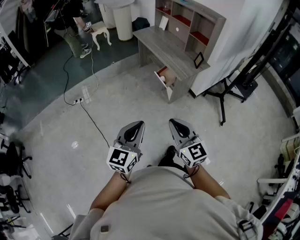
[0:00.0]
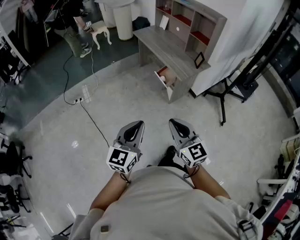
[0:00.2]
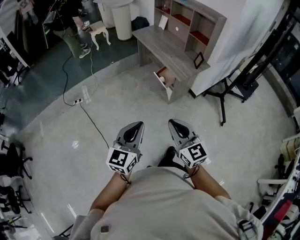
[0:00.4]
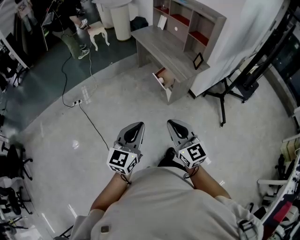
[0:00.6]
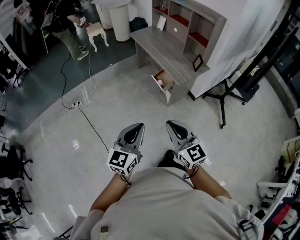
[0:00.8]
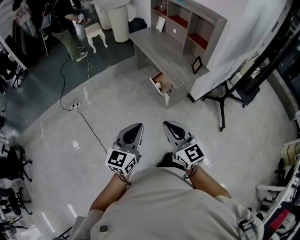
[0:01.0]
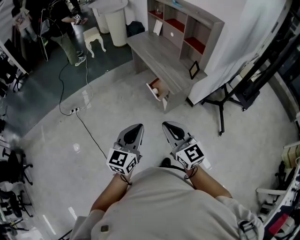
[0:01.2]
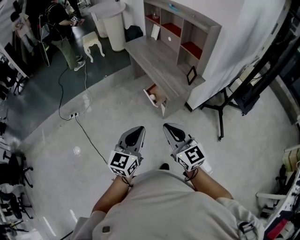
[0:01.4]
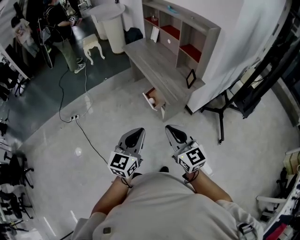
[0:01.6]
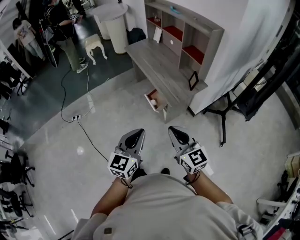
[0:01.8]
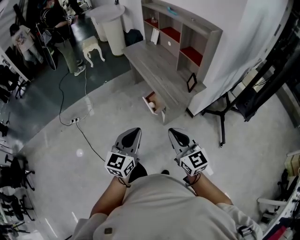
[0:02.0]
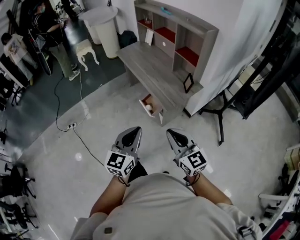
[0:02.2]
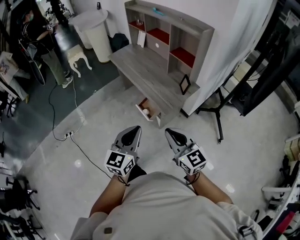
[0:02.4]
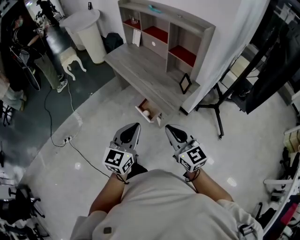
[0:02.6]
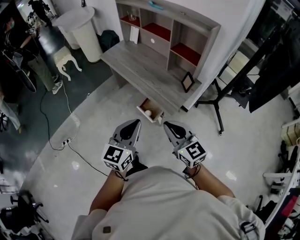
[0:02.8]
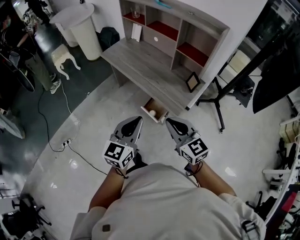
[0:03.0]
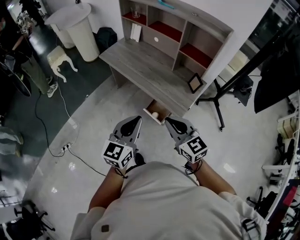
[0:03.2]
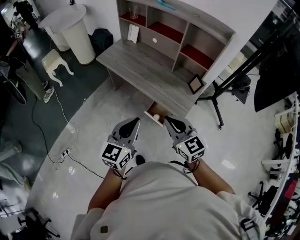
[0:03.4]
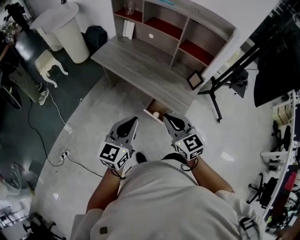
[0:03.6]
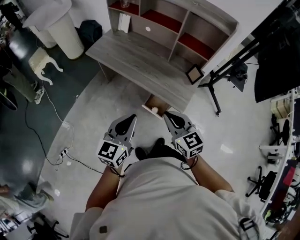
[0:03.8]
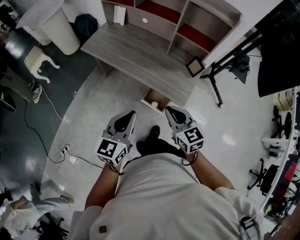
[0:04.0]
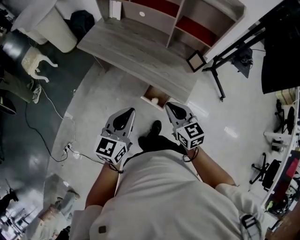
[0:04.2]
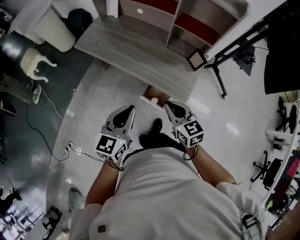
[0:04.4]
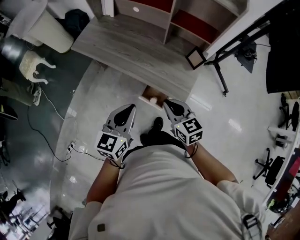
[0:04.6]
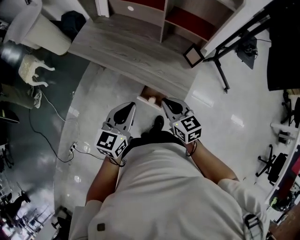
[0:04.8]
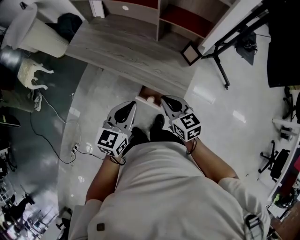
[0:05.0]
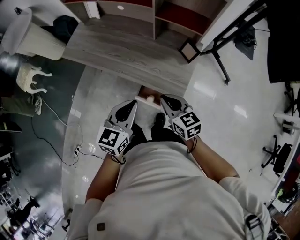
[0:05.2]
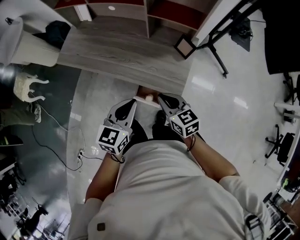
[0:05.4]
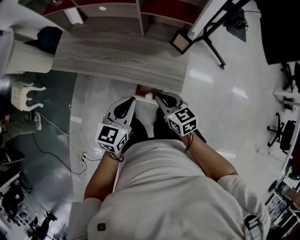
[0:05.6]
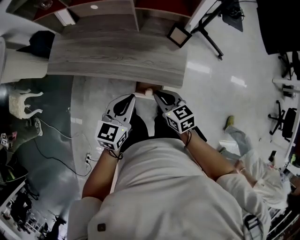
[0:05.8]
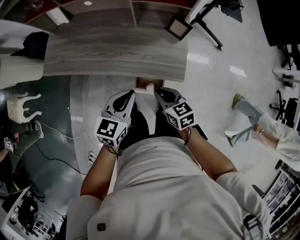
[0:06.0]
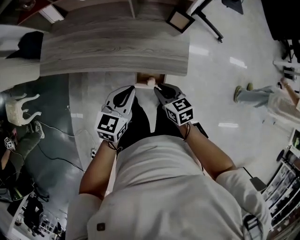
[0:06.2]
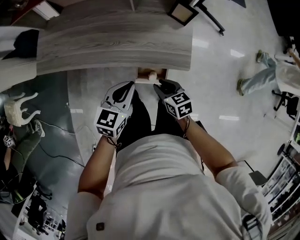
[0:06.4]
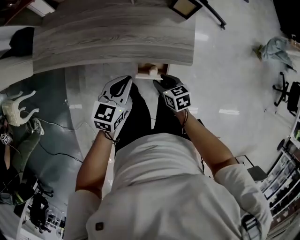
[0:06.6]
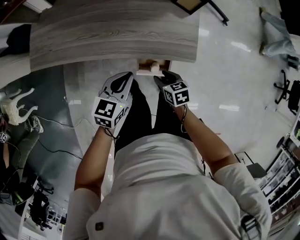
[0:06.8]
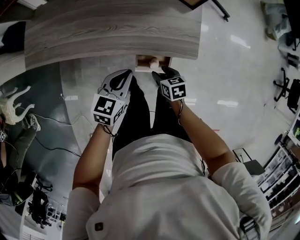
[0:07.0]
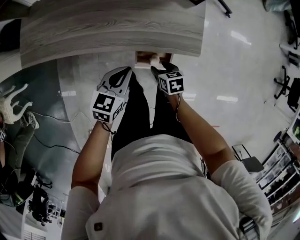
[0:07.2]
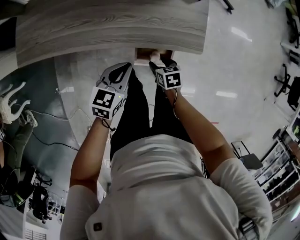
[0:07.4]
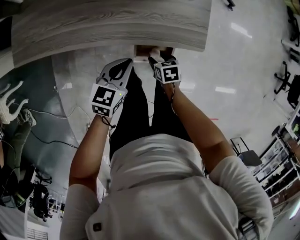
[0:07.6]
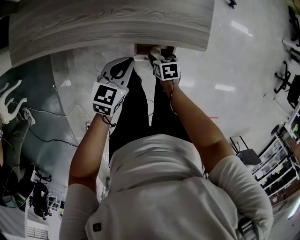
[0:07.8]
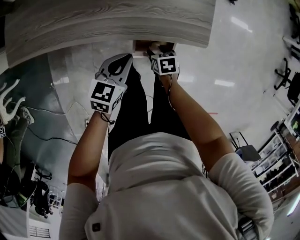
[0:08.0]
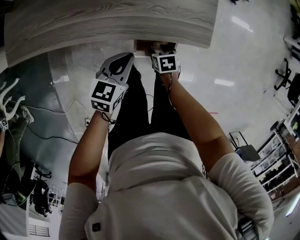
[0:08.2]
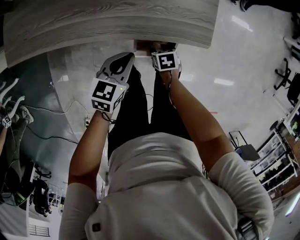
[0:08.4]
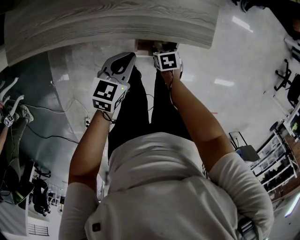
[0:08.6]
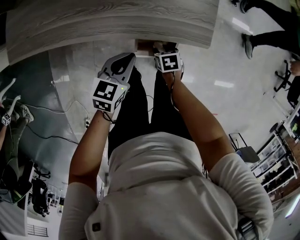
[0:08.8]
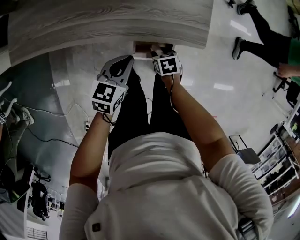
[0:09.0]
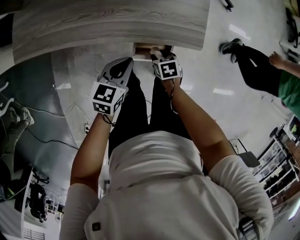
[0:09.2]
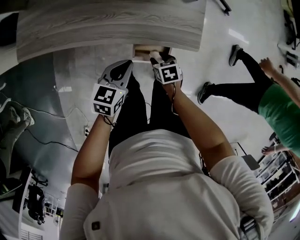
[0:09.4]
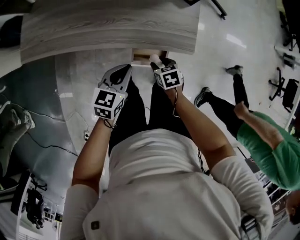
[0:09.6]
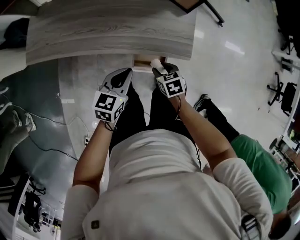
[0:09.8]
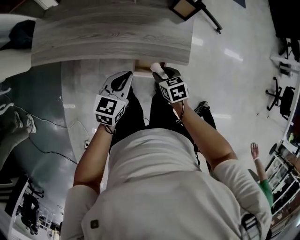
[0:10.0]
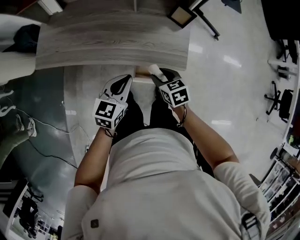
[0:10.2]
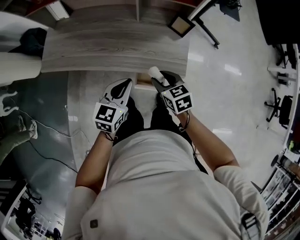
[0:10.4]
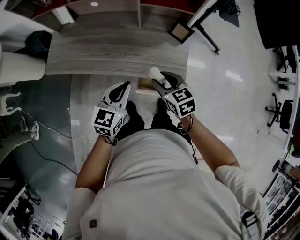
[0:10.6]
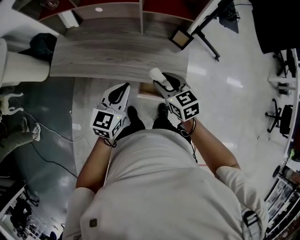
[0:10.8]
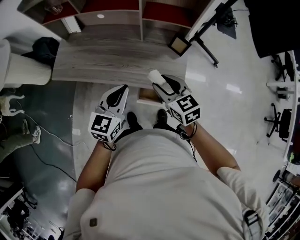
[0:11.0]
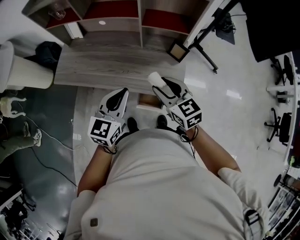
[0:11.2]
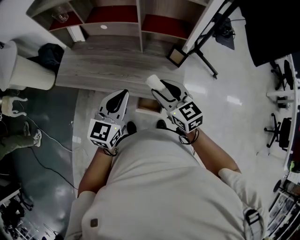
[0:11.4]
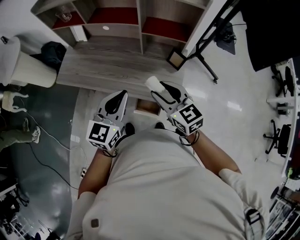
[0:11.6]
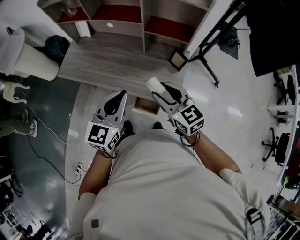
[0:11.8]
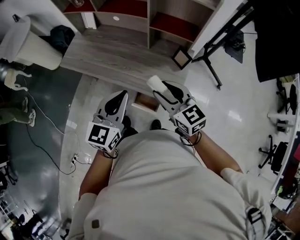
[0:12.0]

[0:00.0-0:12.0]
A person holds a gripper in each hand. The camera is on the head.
0:00.0 to 0:01.6: Both grippers move forward and to the right, approximately 25 cm.
0:01.6 to 0:03.0: The two grippers go roughly 30 cm forward and to the left.
0:03.0 to 0:04.4: The right gripper travels forward and downward by approximately 20 cm, and turns by about 30 degrees; the left gripper goes roughly 20 cm forward, downward and to the left.
0:04.4 to 0:06.0: The left gripper moves forward, downward and to the right, roughly 15 cm, and changes its angle by approximately 30 degrees. Meanwhile the right gripper is displaced downward and forward by roughly 15 cm, and rotates roughly 20 degrees.
0:06.0 to 0:07.6: The grippers both shift downward by roughly 25 cm. The right gripper rotates approximately 30 degrees, and opens its fingers.
0:07.6 to 0:09.0: The grippers move only a little.
0:09.0 to 0:10.4: The left gripper heads upward, covering some 20 cm. The right gripper moves upward, about 30 cm, and changes its angle by roughly 30 degrees.
0:10.4 to 0:12.0: Both grippers move upward, some 20 cm. The left gripper rotates about 30 degrees. Meanwhile the right gripper rotates about 30 degrees.

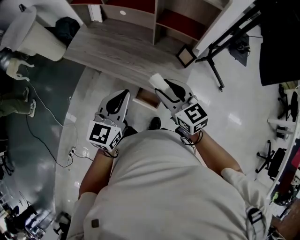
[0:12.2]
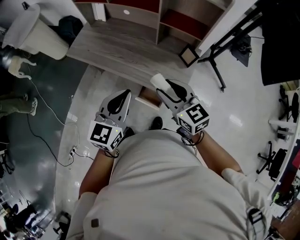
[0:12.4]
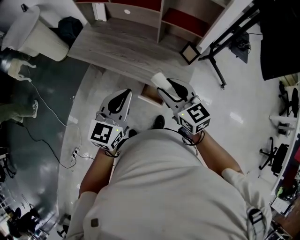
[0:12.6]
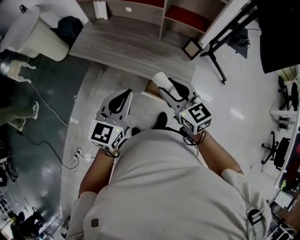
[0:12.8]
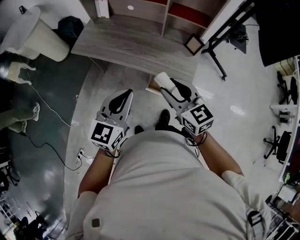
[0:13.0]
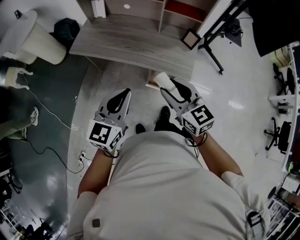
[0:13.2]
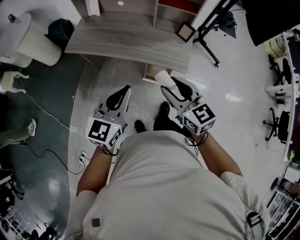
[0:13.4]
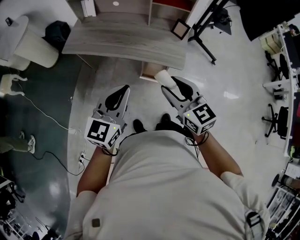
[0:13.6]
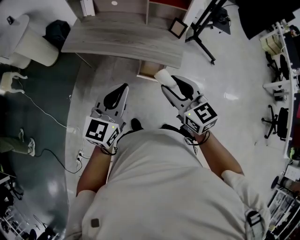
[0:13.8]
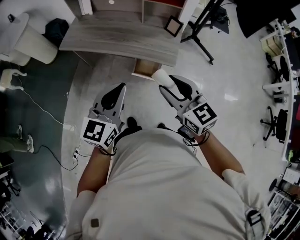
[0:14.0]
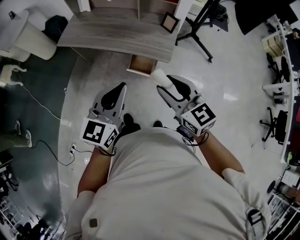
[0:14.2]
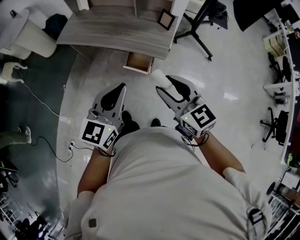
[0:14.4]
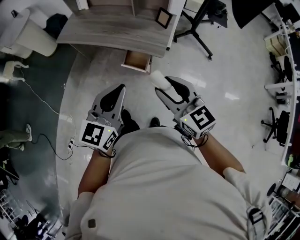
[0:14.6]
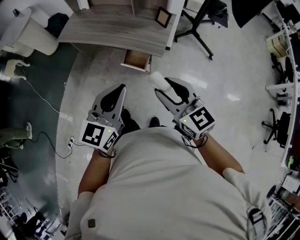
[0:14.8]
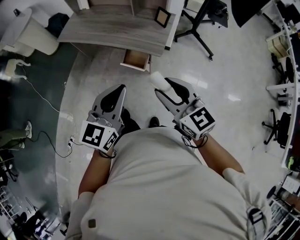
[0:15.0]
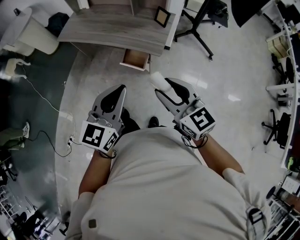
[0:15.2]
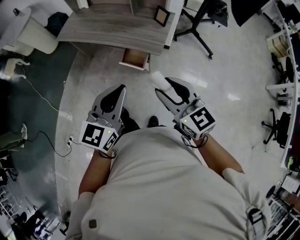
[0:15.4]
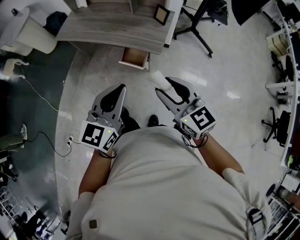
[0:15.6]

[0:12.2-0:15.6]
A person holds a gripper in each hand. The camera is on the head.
0:12.2 to 0:13.8: The right gripper shifts some 25 cm backward. Meanwhile the left gripper is displaced backward and to the left by about 20 cm.
0:13.8 to 0:15.6: Both grippers travel together to the right and backward, some 20 cm.

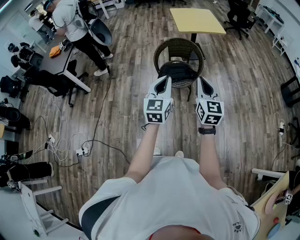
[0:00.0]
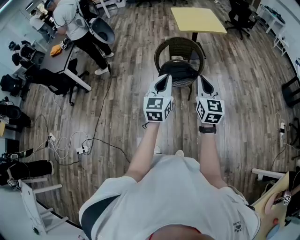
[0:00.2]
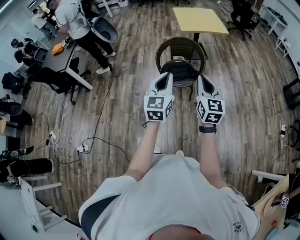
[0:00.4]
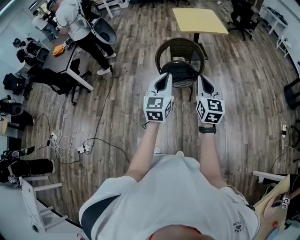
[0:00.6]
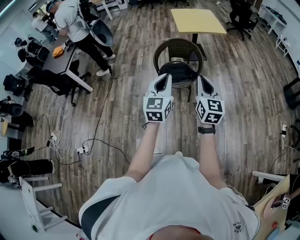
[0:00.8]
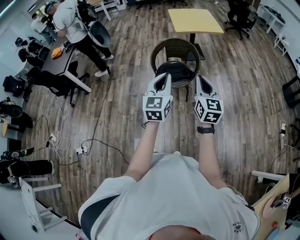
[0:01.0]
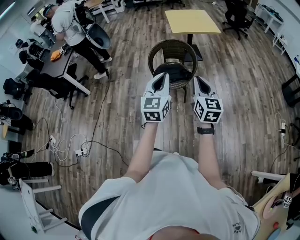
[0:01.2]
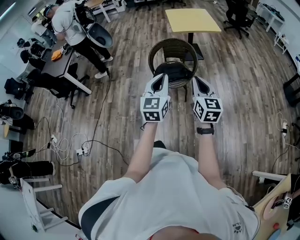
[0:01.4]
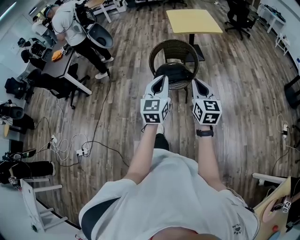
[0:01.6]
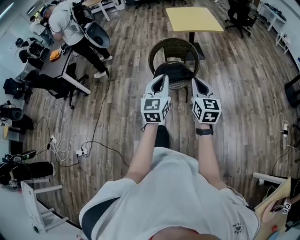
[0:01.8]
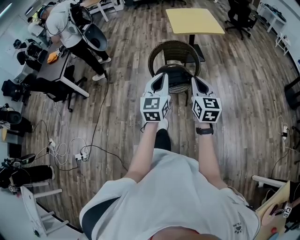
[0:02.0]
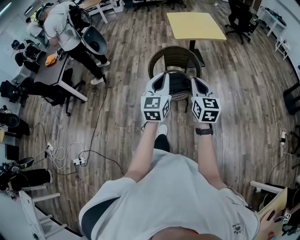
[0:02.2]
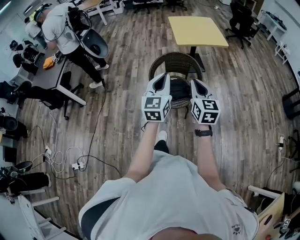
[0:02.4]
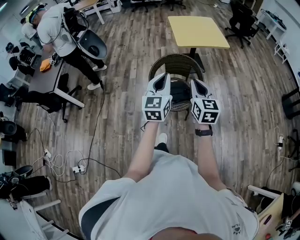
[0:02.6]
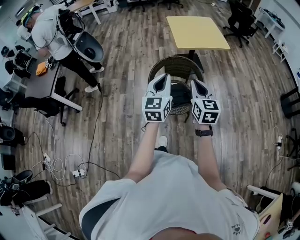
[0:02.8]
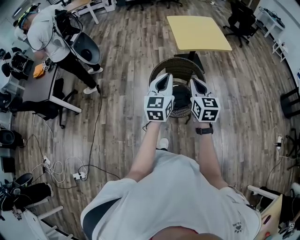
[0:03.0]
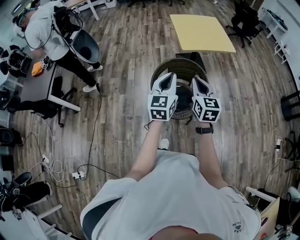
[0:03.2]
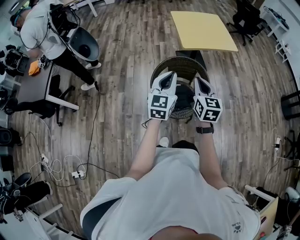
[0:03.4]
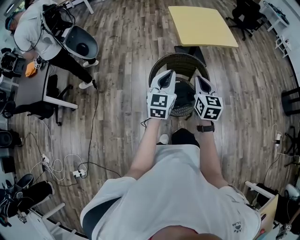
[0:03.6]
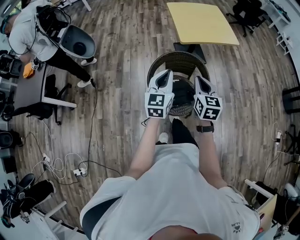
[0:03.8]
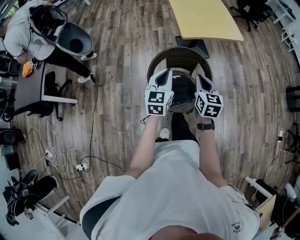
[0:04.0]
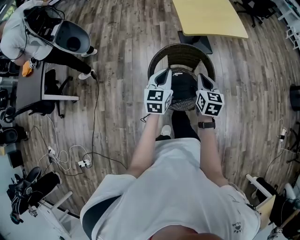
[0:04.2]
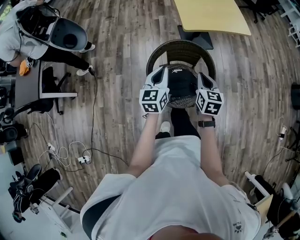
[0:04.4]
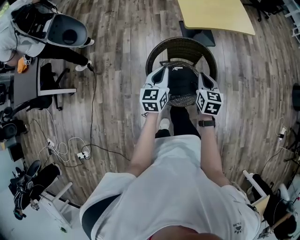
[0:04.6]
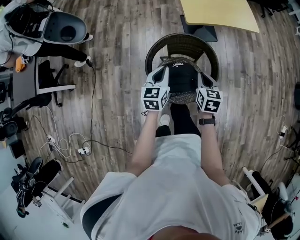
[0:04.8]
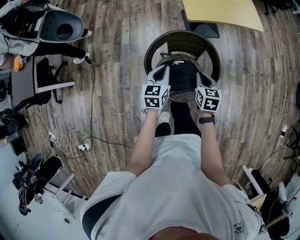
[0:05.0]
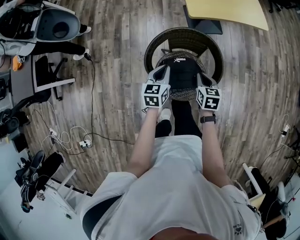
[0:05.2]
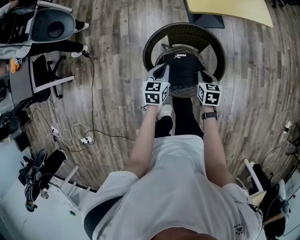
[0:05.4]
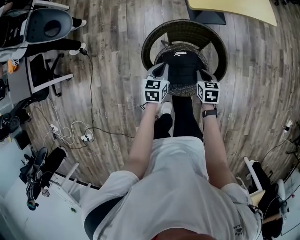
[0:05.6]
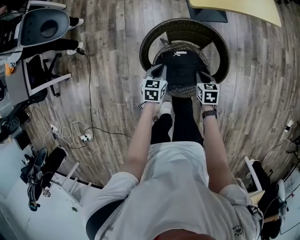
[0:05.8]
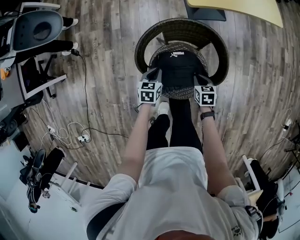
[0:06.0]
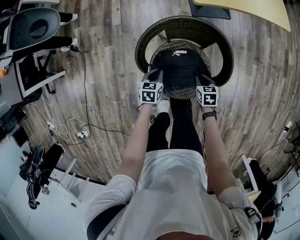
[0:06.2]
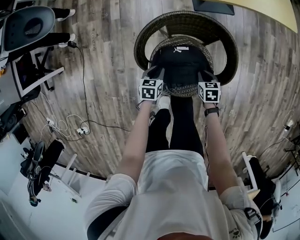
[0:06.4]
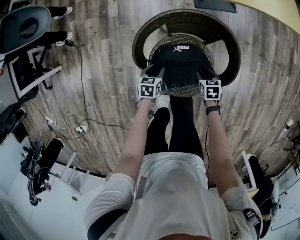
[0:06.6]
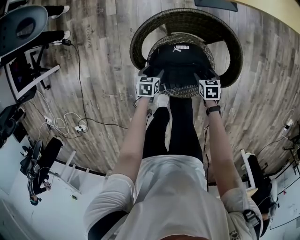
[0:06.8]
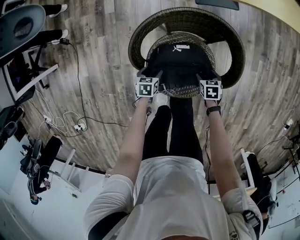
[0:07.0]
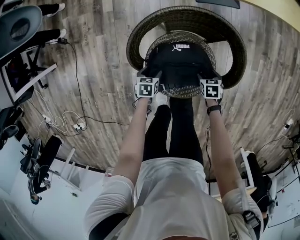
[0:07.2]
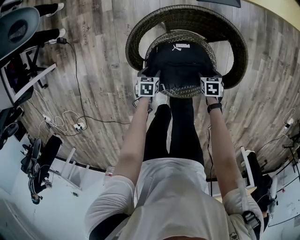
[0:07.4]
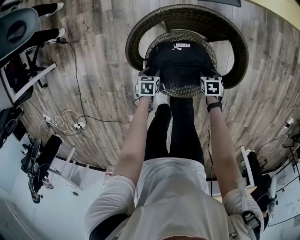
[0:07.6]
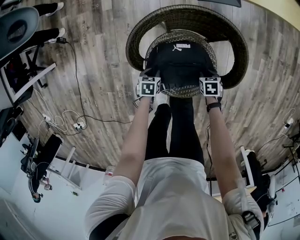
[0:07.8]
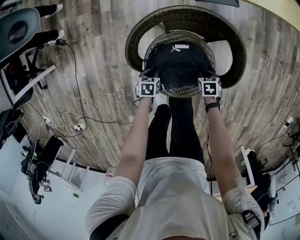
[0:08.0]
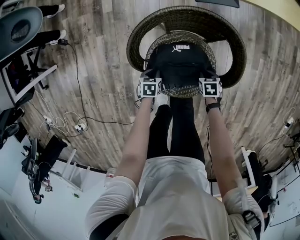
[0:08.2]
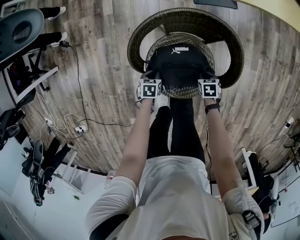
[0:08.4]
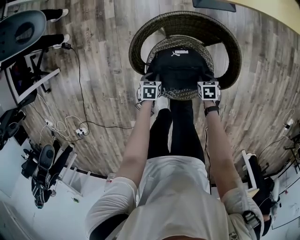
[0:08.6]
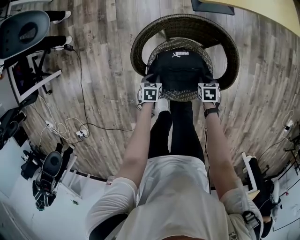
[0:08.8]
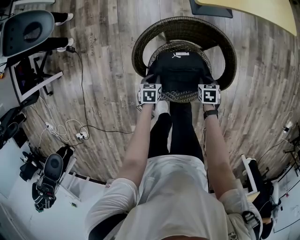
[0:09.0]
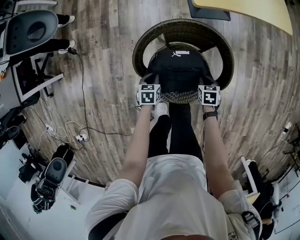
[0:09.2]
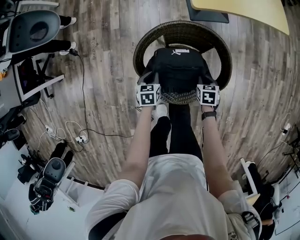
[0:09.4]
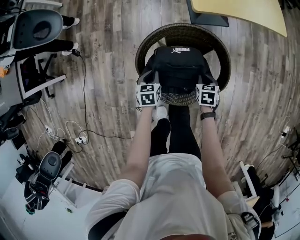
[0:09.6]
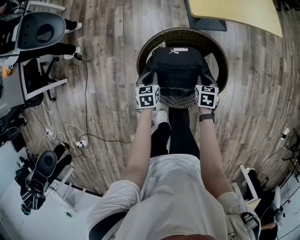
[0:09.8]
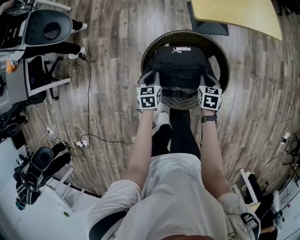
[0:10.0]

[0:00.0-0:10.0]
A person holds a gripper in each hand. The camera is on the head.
0:00.0 to 0:01.4: Both grippers move to the right, roughly 10 cm.
0:01.4 to 0:02.8: Both grippers travel together forward, some 30 cm.
0:02.8 to 0:04.2: The grippers both shift forward and downward by about 25 cm.
0:04.2 to 0:05.8: Both grippers move downward, roughly 30 cm. The right gripper rotates some 30 degrees; the left gripper turns by approximately 30 degrees.
0:05.8 to 0:07.2: The two grippers go some 20 cm downward. The left gripper swivels about 30 degrees, and opens its fingers, while the right gripper opens up.
0:07.2 to 0:08.6: The left gripper closes up, while the right gripper closes.
0:08.6 to 0:10.0: Both grippers travel together upward, roughly 20 cm. The right gripper swivels some 20 degrees; the left gripper swivels some 30 degrees.
